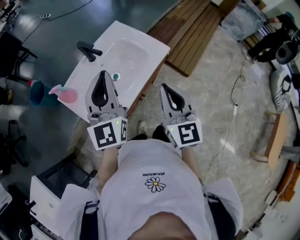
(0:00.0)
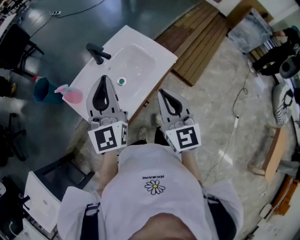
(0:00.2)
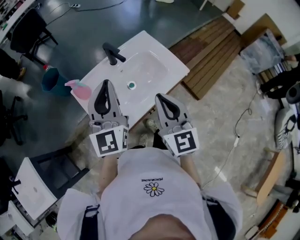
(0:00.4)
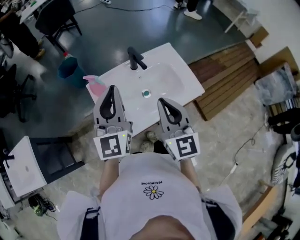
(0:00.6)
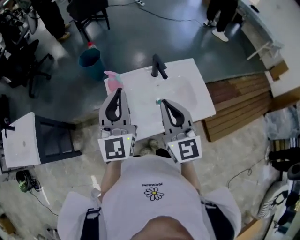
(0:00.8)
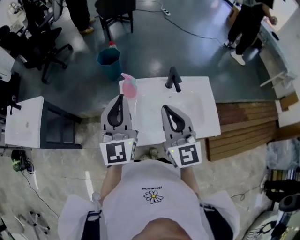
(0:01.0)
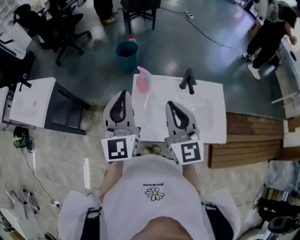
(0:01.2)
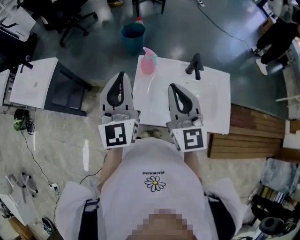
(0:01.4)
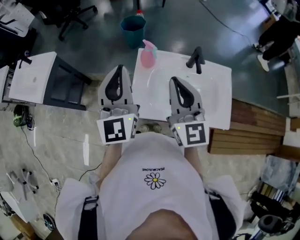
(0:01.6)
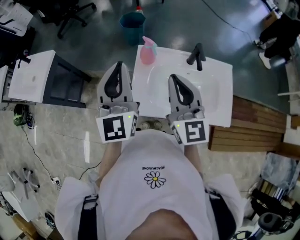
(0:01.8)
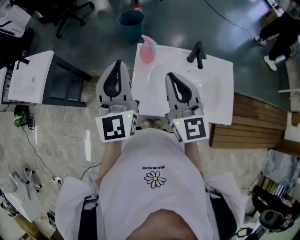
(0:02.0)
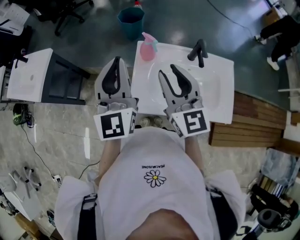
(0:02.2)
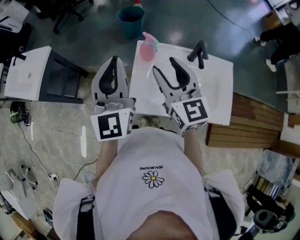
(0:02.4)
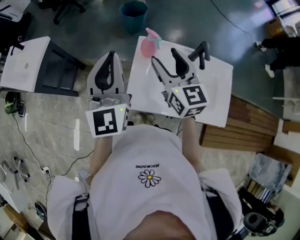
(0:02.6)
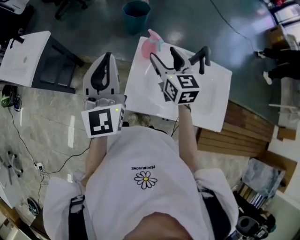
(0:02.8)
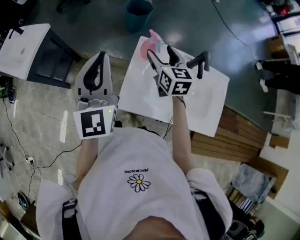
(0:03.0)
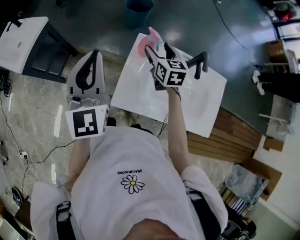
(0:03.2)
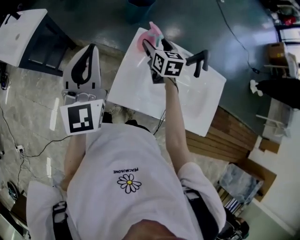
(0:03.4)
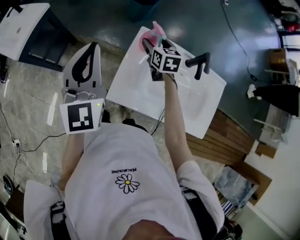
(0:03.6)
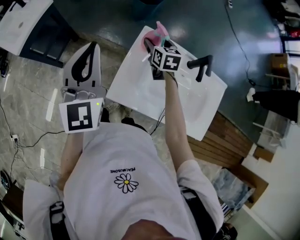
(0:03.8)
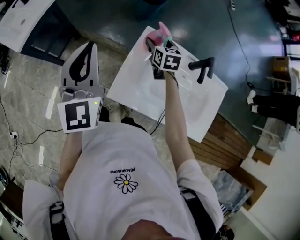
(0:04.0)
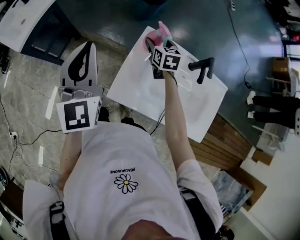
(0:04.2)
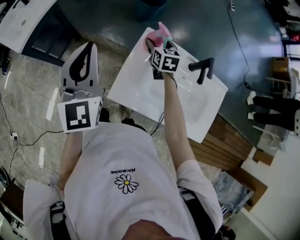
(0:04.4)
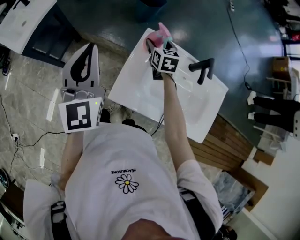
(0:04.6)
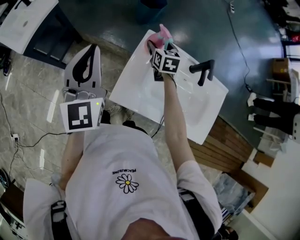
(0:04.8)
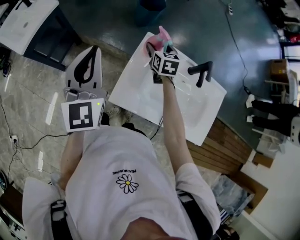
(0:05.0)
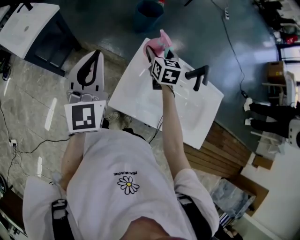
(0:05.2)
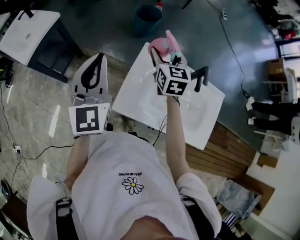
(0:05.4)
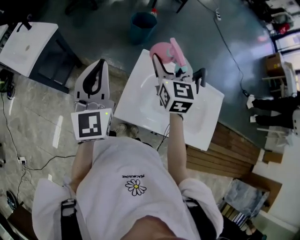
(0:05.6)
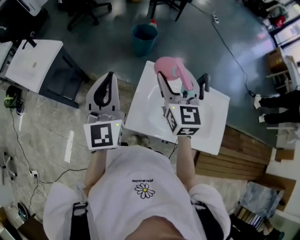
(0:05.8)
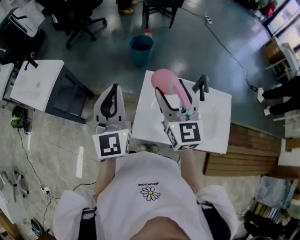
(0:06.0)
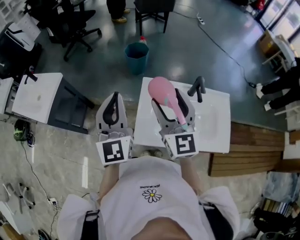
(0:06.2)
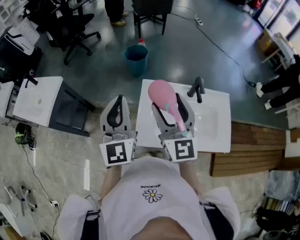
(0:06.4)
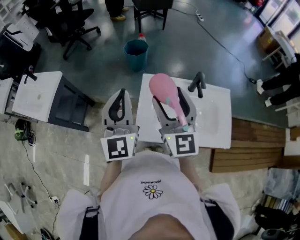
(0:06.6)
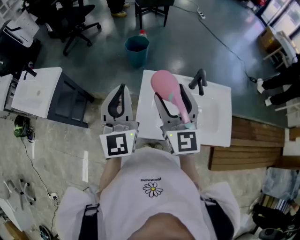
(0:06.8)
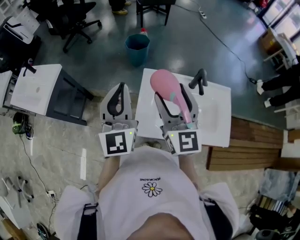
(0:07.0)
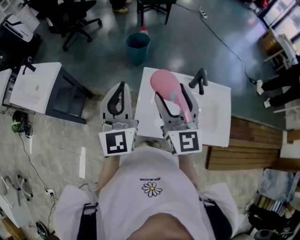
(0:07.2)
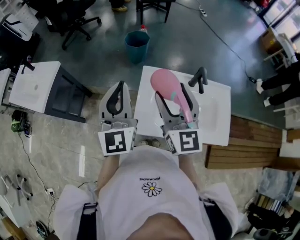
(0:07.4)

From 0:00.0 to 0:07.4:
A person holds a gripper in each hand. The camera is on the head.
From 0:00.0 to 0:01.4: The left gripper changes place by approximately 20 cm, and changes its angle by about 60 degrees. Meanwhile the right gripper moves some 25 cm, and changes its angle by approximately 60 degrees.
From 0:01.4 to 0:03.0: The right gripper goes approximately 20 cm forward and downward, swivels approximately 30 degrees, and opens up; the left gripper travels to the left by roughly 5 cm.
From 0:03.0 to 0:04.4: The right gripper goes about 15 cm downward and forward.
From 0:04.4 to 0:06.0: The right gripper goes about 30 cm upward and backward, and points its fingers some 30 degrees further upward, while the left gripper shifts roughly 5 cm upward.
From 0:06.0 to 0:07.4: There are only small adjustments of the grippers.

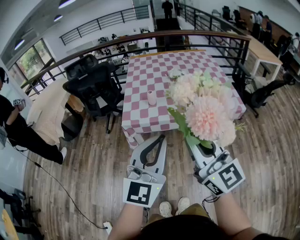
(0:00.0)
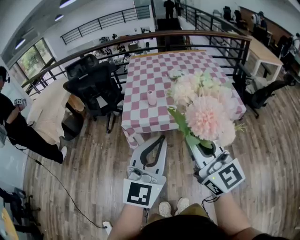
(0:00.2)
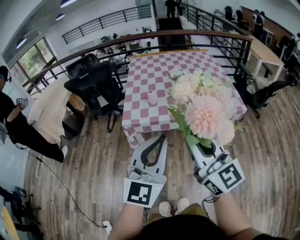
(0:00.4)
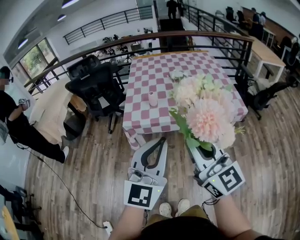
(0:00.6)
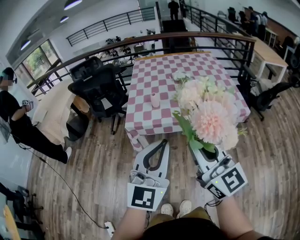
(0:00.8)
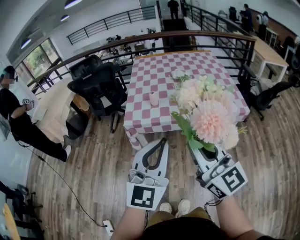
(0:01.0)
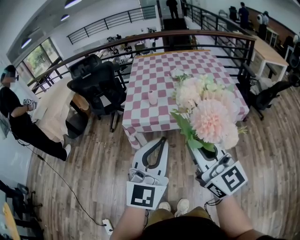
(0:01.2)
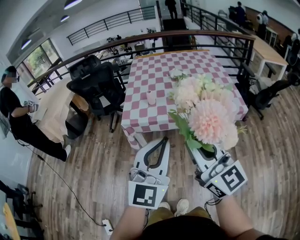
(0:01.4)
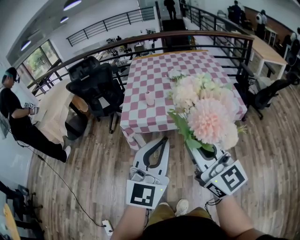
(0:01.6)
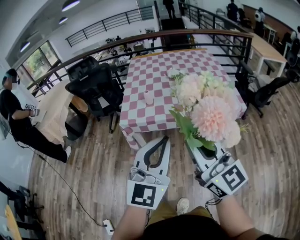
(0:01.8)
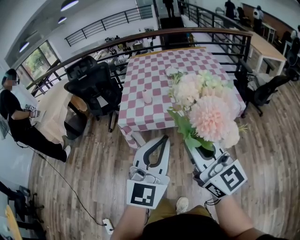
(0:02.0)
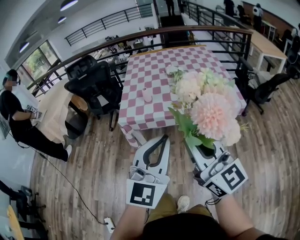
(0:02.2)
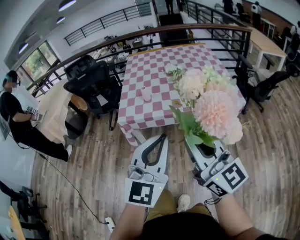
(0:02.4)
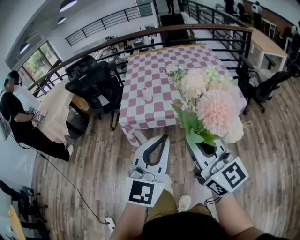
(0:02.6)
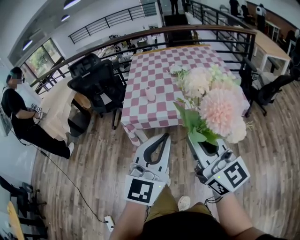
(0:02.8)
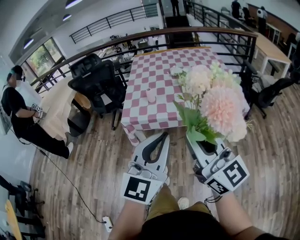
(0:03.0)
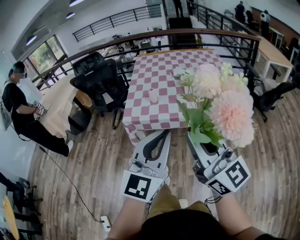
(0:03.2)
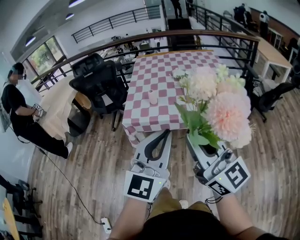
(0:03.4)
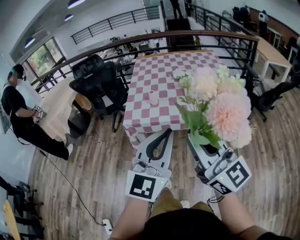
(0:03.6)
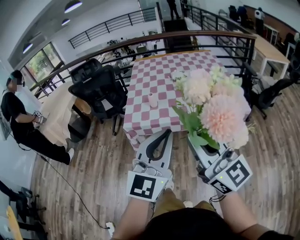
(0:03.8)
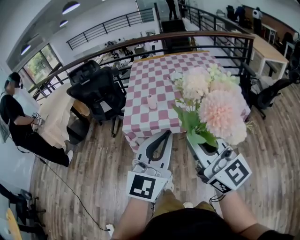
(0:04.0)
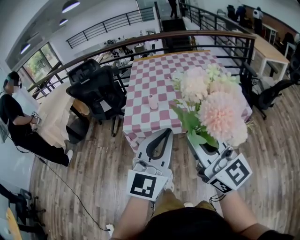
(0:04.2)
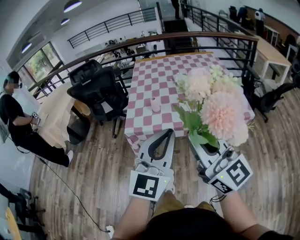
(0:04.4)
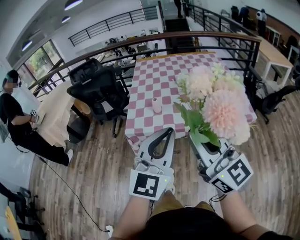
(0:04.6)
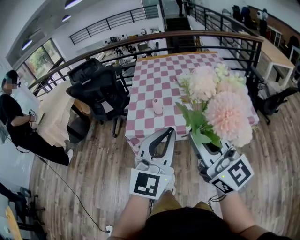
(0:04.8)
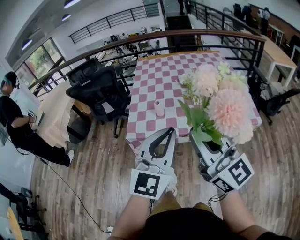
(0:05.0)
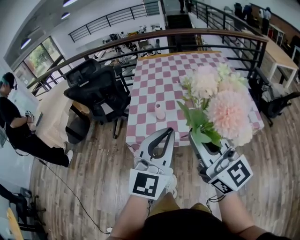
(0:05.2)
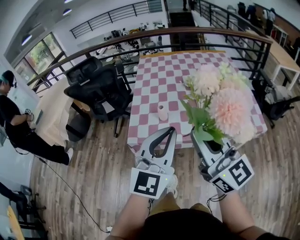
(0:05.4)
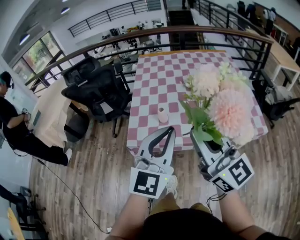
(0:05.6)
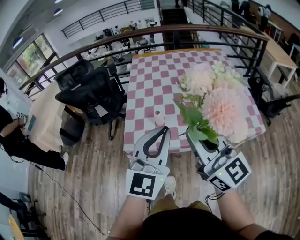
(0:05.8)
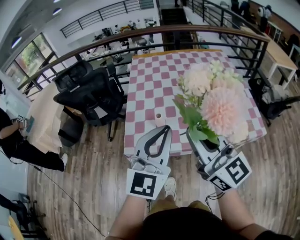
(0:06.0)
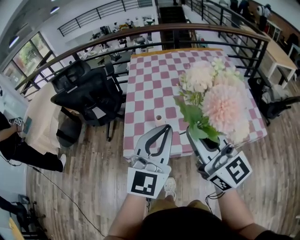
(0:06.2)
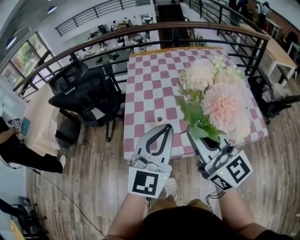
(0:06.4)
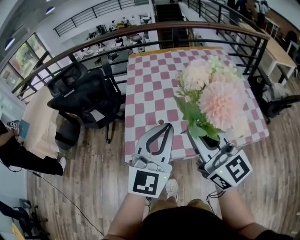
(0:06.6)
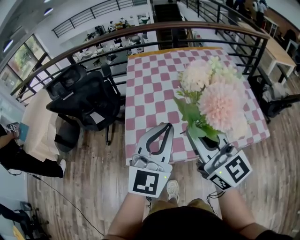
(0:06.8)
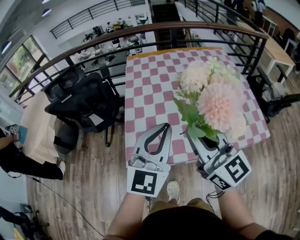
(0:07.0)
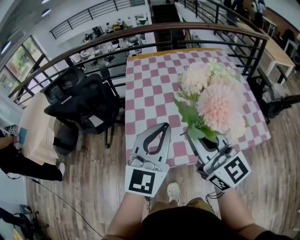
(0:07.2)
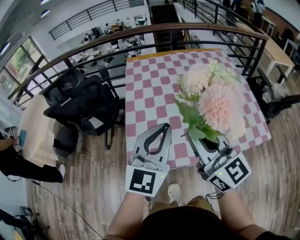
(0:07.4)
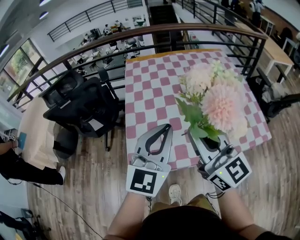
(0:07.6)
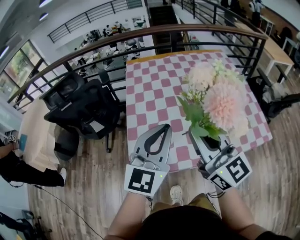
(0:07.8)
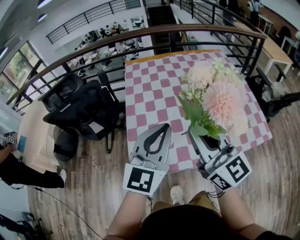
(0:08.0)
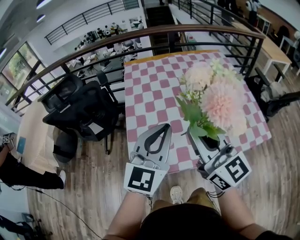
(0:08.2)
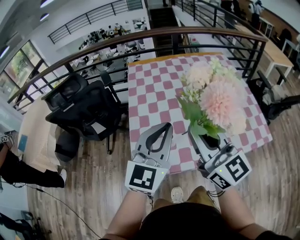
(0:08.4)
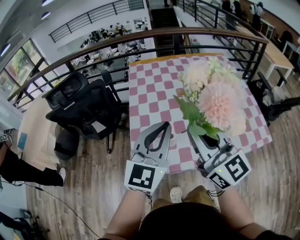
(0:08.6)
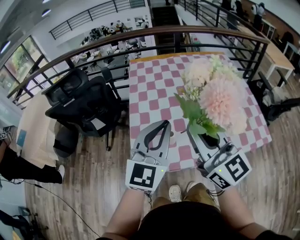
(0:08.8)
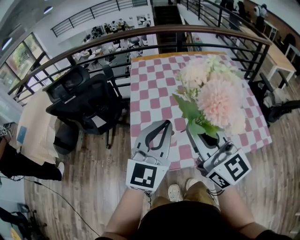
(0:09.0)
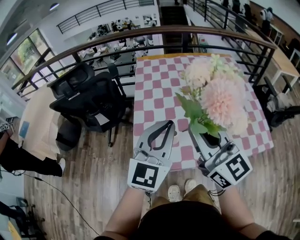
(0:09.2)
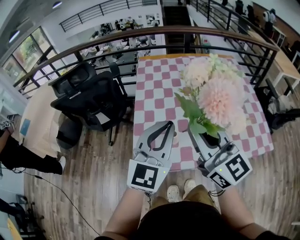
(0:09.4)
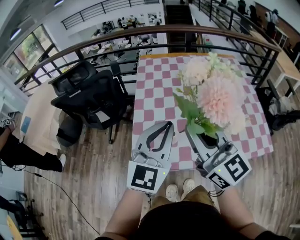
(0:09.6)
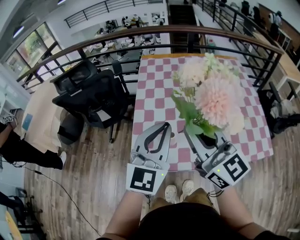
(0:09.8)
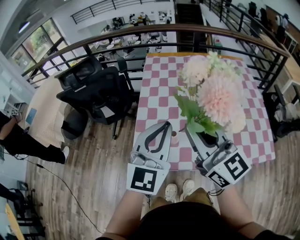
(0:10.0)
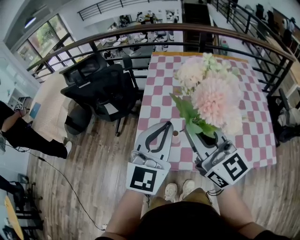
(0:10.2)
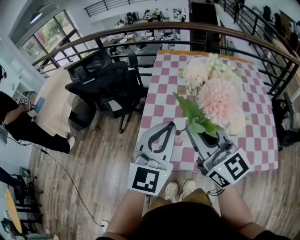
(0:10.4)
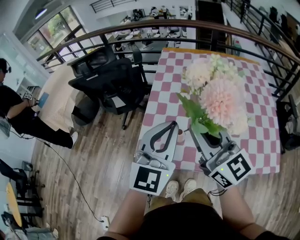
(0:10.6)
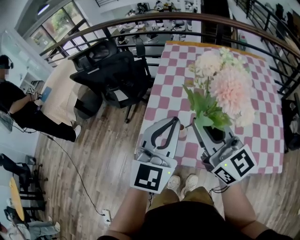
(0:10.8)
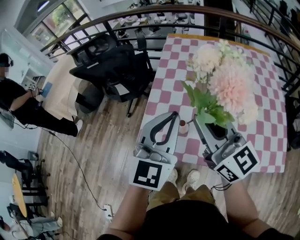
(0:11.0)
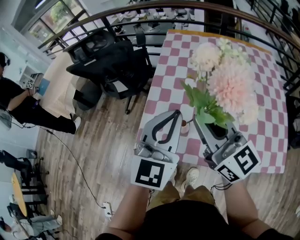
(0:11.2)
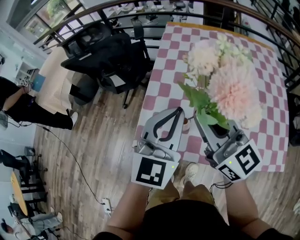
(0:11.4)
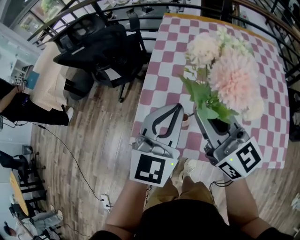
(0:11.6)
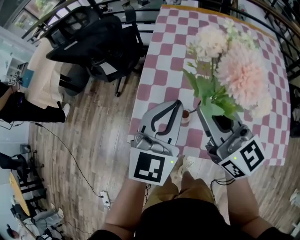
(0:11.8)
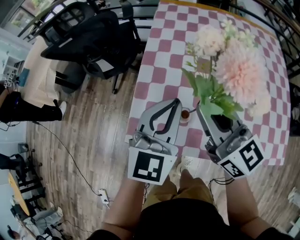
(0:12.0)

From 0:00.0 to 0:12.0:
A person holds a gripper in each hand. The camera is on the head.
From 0:00.0 to 0:01.6: The right gripper moves some 5 cm. The left gripper moves to the right, approximately 5 cm.
From 0:01.6 to 0:03.0: There are only small adjustments of the grippers.
From 0:03.0 to 0:04.4: Both grippers move forward, about 5 cm.
From 0:04.4 to 0:06.0: The two grippers go roughly 25 cm forward.
From 0:06.0 to 0:07.6: The two grippers go about 10 cm forward.
From 0:07.6 to 0:10.4: The grippers move only a little.
From 0:10.4 to 0:12.0: The two grippers go roughly 15 cm downward and forward.

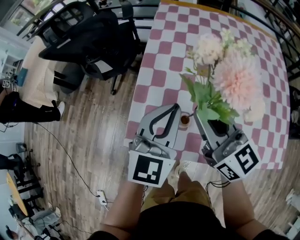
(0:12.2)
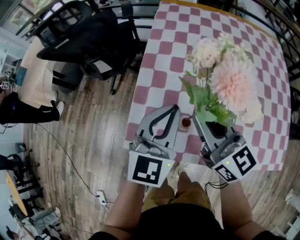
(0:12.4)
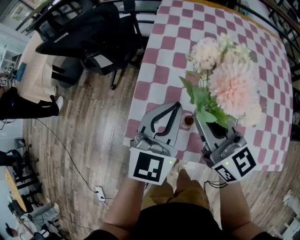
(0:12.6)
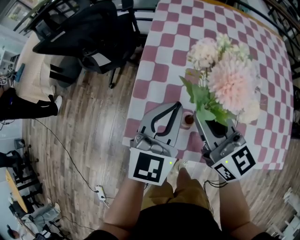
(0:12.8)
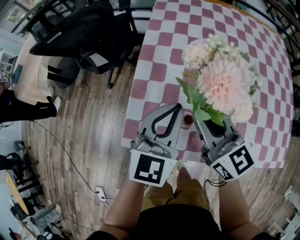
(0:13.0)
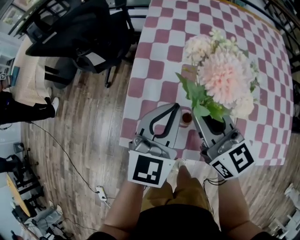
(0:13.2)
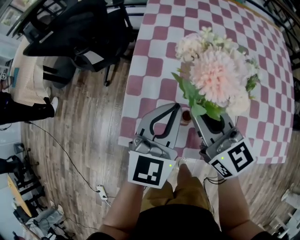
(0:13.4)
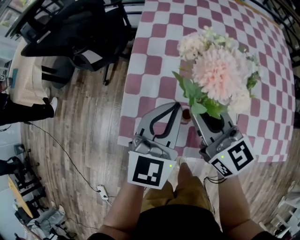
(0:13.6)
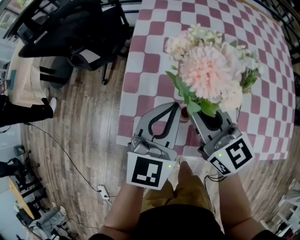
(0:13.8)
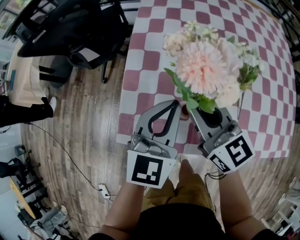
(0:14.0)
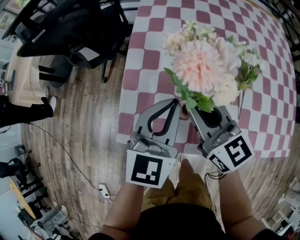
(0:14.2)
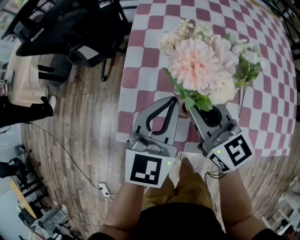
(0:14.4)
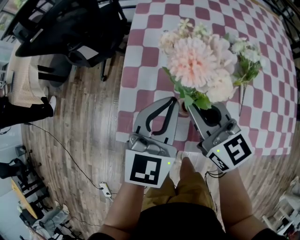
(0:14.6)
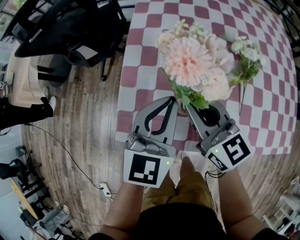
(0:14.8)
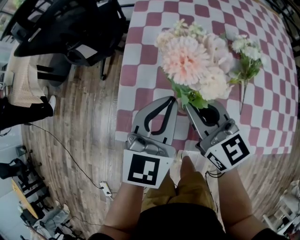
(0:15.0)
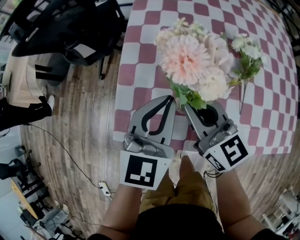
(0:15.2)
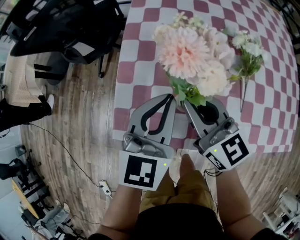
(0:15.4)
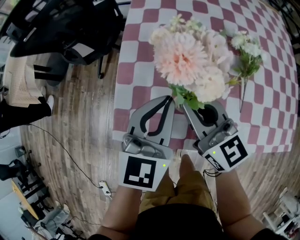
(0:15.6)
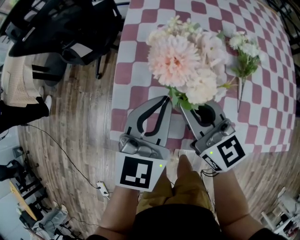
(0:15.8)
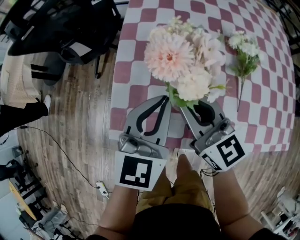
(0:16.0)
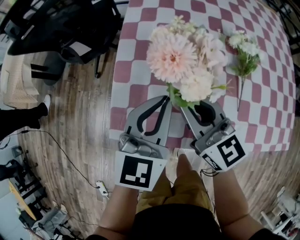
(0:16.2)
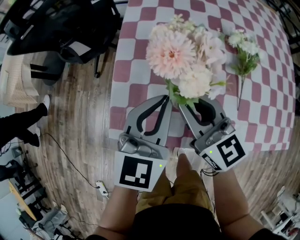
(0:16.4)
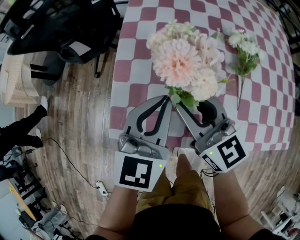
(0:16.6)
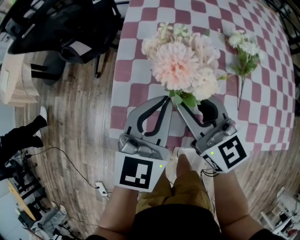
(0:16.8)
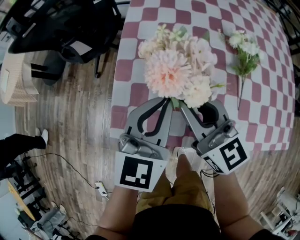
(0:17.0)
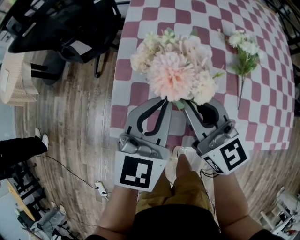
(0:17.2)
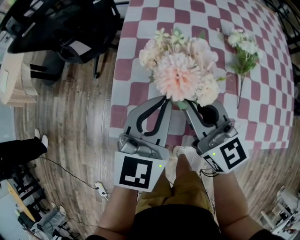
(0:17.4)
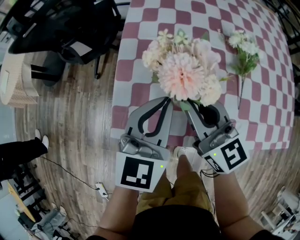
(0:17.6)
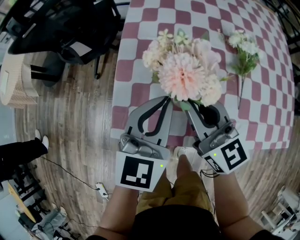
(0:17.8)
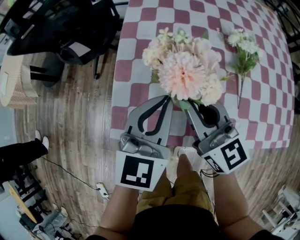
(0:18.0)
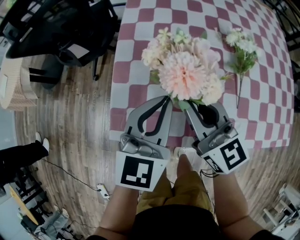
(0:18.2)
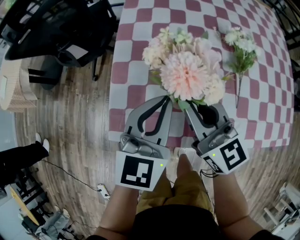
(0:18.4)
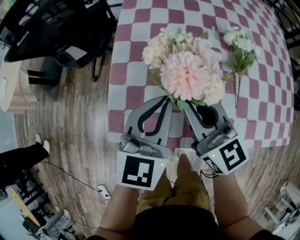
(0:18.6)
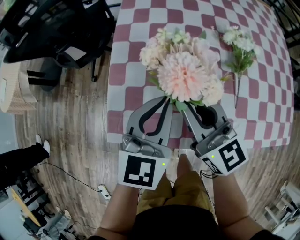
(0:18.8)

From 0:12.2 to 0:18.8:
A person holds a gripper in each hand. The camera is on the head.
From 0:12.2 to 0:13.8: The two grippers go about 10 cm downward.
From 0:13.8 to 0:18.8: The grippers make only small movements.
